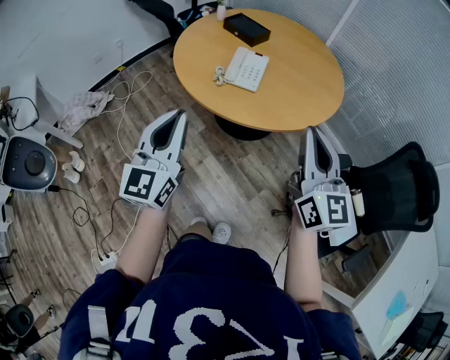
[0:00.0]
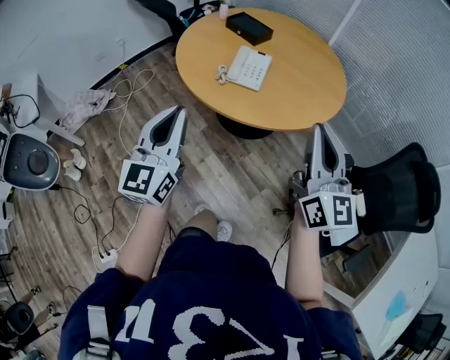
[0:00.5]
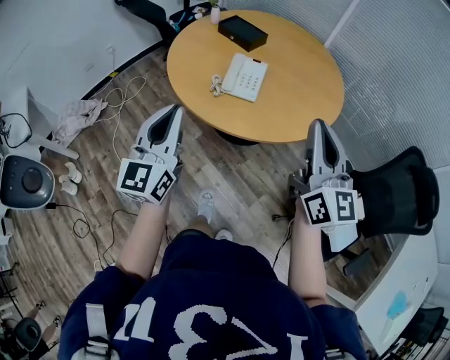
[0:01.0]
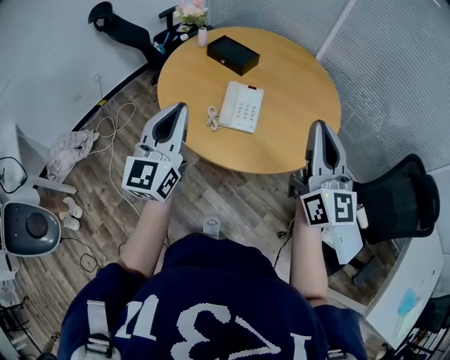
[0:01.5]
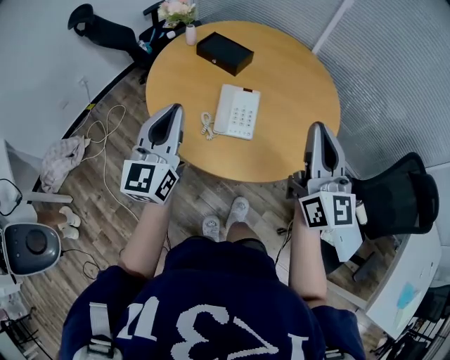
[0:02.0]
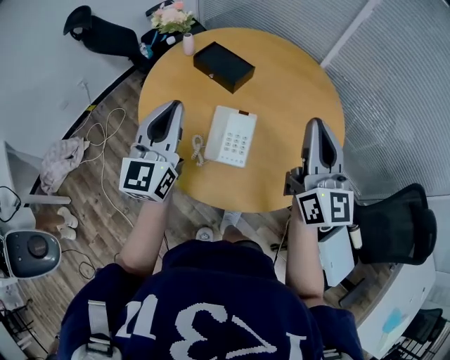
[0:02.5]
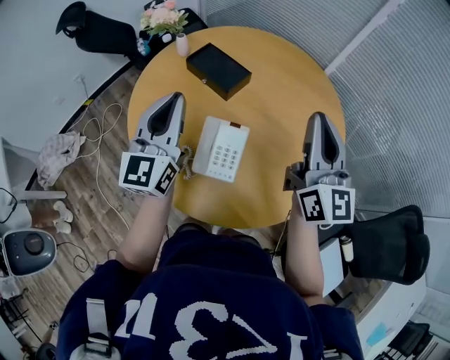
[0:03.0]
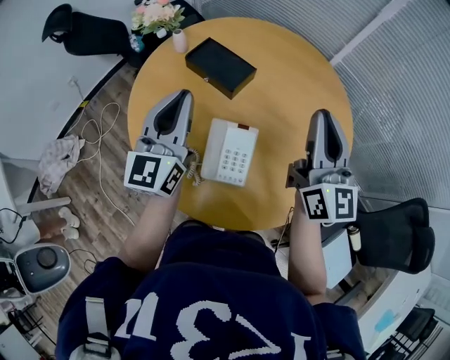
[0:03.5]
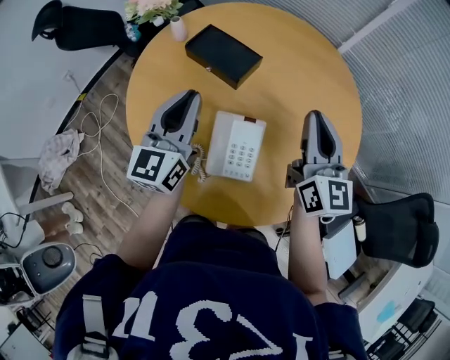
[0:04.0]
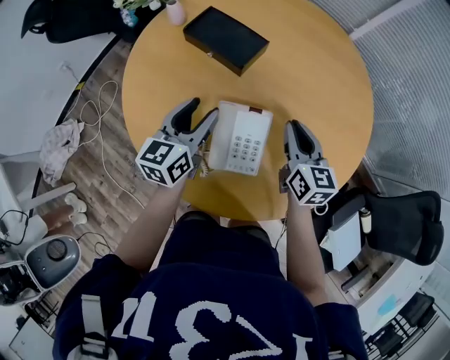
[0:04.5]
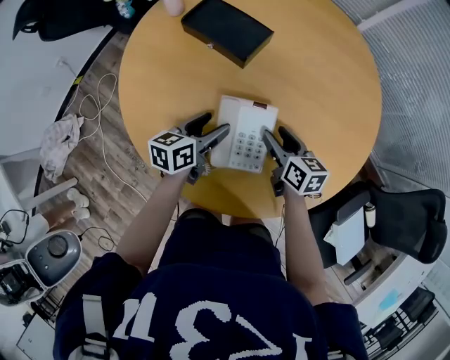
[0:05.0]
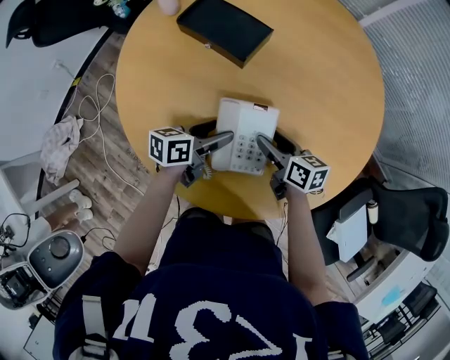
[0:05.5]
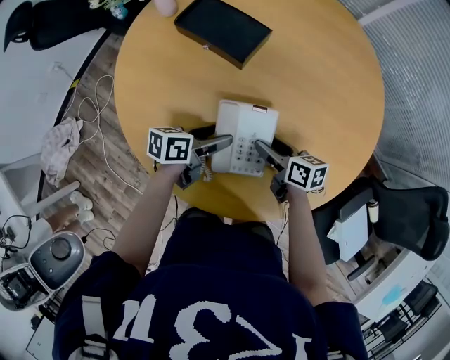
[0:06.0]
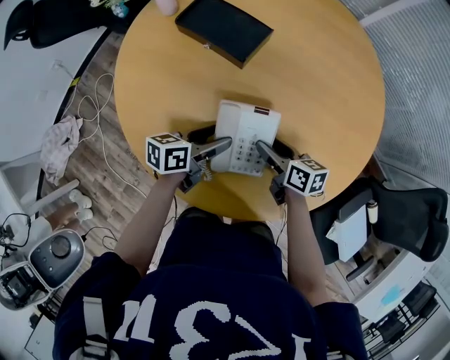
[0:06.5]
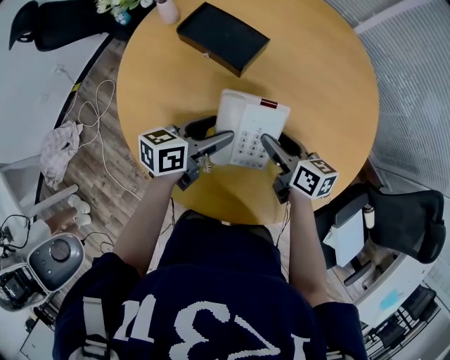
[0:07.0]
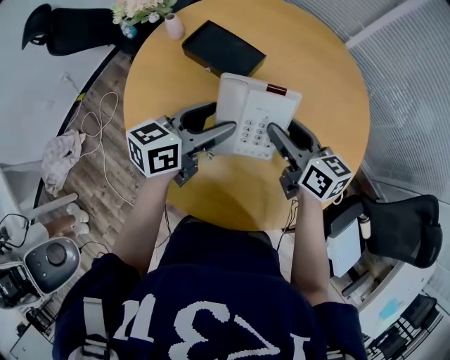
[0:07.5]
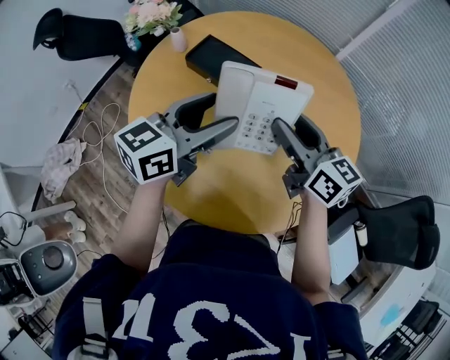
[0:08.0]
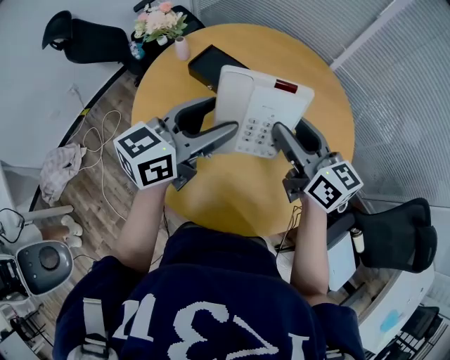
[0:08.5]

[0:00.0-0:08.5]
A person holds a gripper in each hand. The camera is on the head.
0:00.0 to 0:02.0: Both grippers travel together forward, roughly 25 cm.
0:02.0 to 0:04.0: Both grippers travel together forward, roughly 25 cm.
0:04.0 to 0:06.5: Both grippers move downward, some 25 cm. The right gripper tilts its fingers roughly 30 degrees downward, and opens. Meanwhile the left gripper swivels roughly 60 degrees, and opens.
0:06.5 to 0:08.5: The grippers both shift upward by approximately 30 cm. The left gripper turns by about 40 degrees; the right gripper swivels approximately 40 degrees.

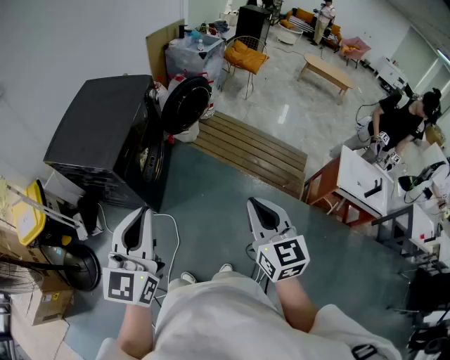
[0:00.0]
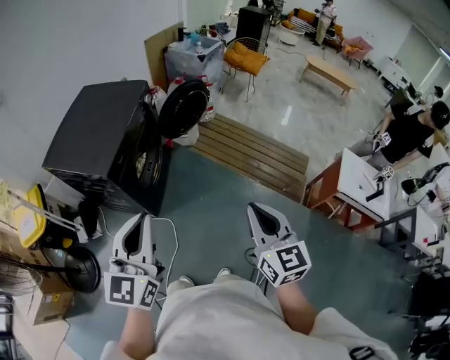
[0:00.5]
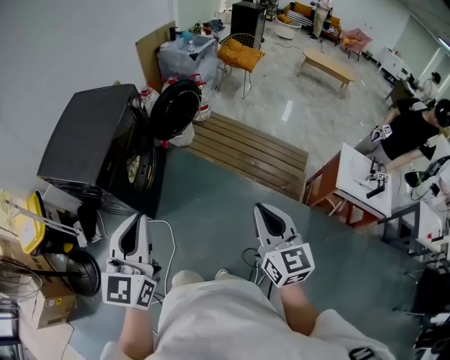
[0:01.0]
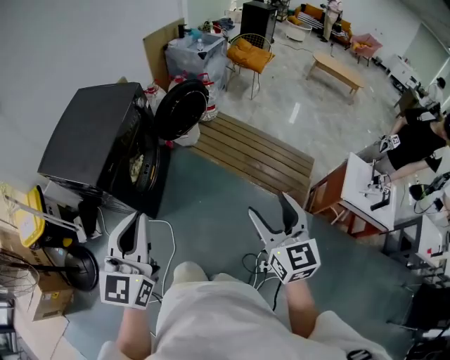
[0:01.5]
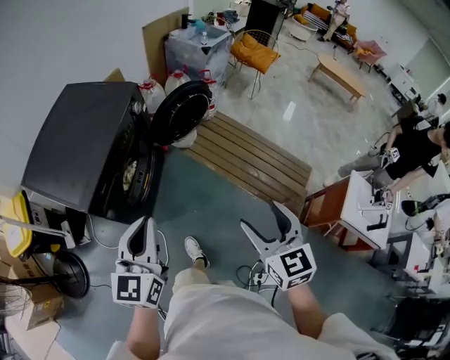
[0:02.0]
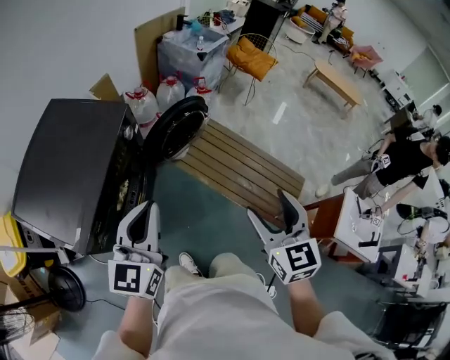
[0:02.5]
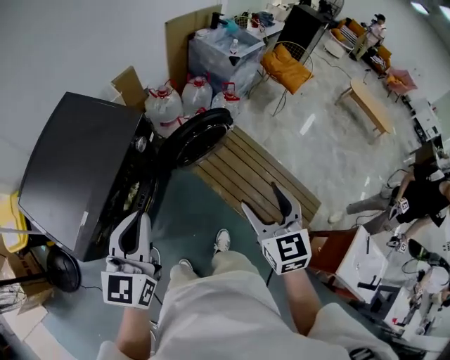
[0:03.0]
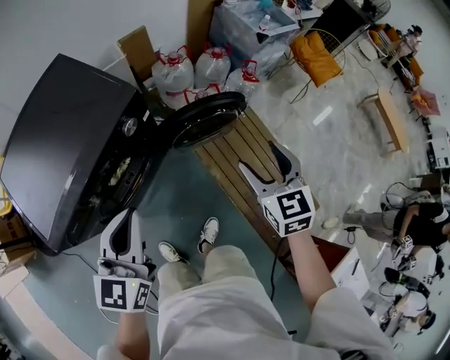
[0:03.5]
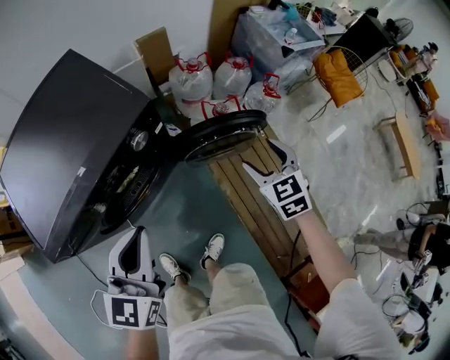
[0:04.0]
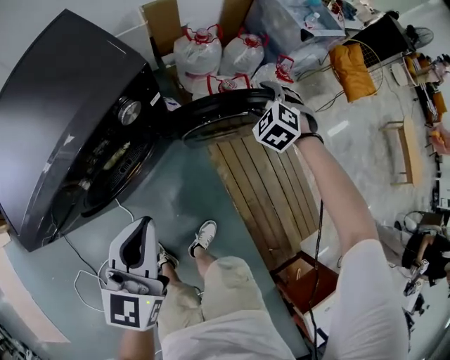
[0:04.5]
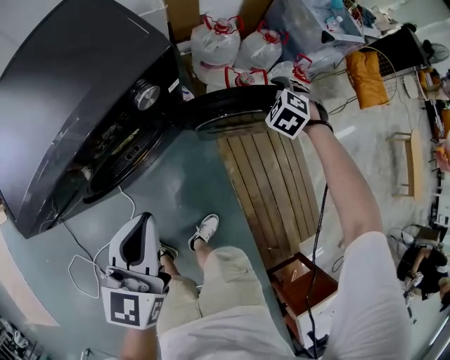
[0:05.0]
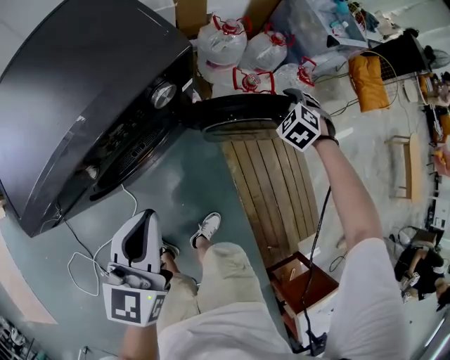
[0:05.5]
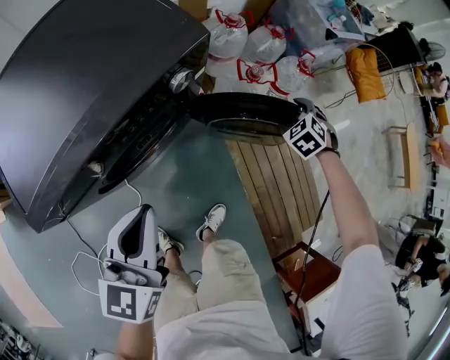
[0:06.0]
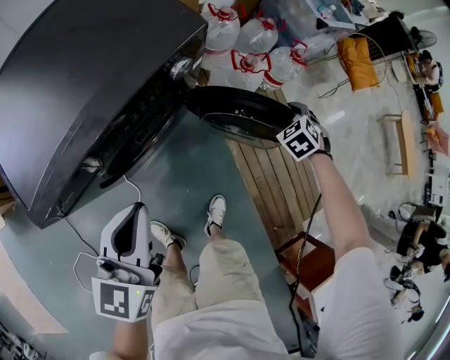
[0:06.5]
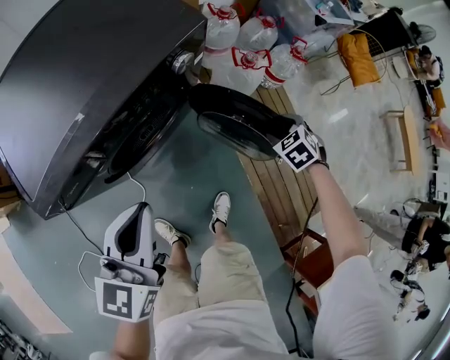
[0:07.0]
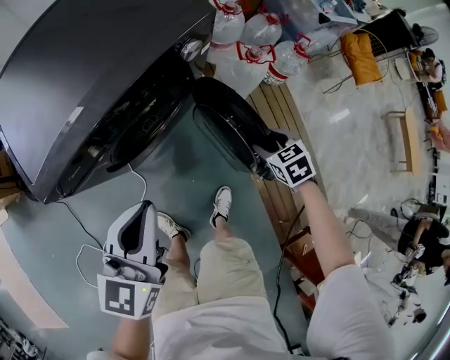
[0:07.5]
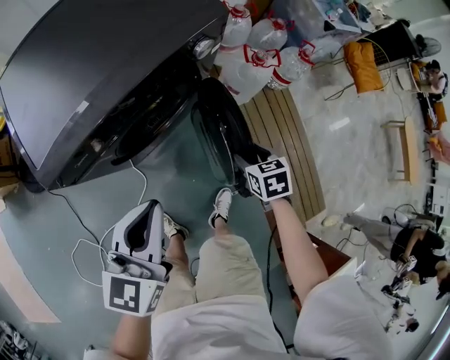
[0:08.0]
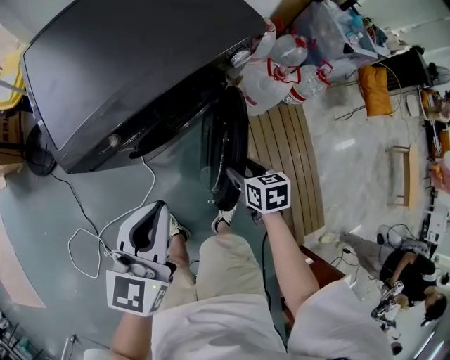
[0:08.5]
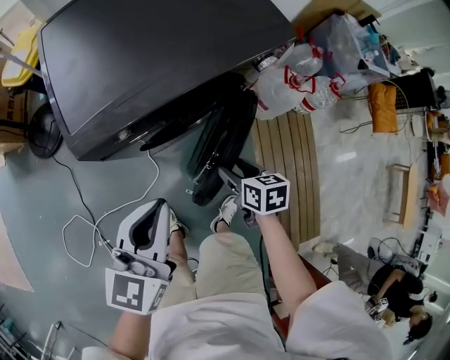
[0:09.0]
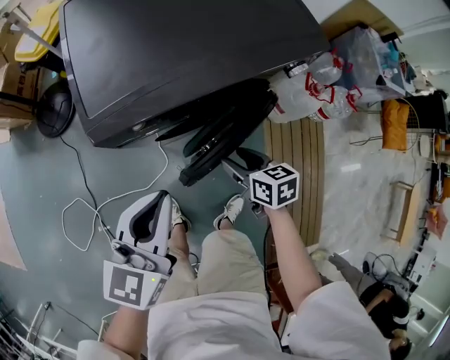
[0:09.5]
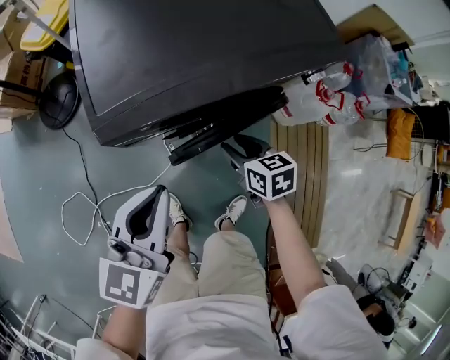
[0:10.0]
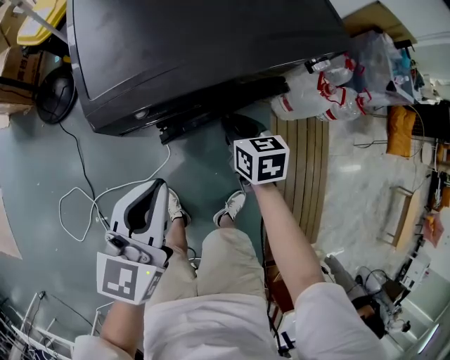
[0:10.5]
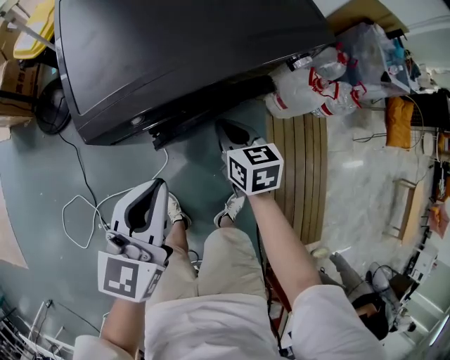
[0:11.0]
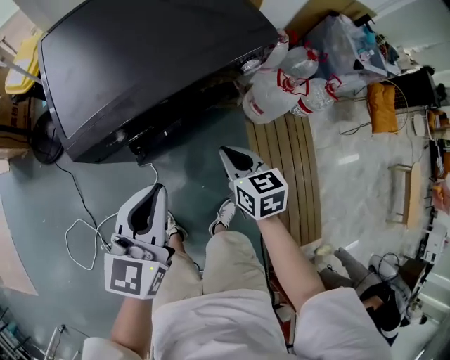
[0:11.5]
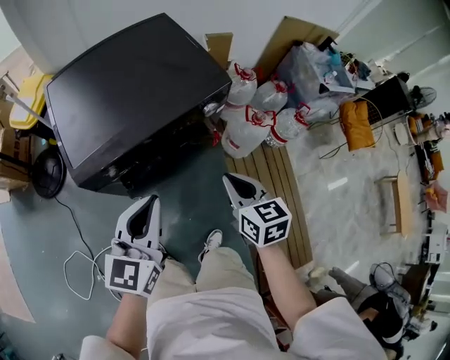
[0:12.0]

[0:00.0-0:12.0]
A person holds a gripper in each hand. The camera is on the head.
0:00.0 to 0:02.0: The right gripper travels forward by some 20 cm, and opens; the left gripper moves forward and downward, approximately 25 cm.
0:02.0 to 0:04.0: The left gripper shifts by roughly 35 cm, and rotates some 30 degrees; the right gripper shifts by approximately 60 cm, and turns by some 40 degrees.
0:04.0 to 0:06.0: The right gripper heads downward, covering about 15 cm, and rotates roughly 40 degrees. The left gripper travels downward and to the left by approximately 10 cm.
0:06.0 to 0:08.0: The right gripper is displaced backward and to the left by approximately 30 cm, and rolls clockwise, seen from behind, by about 40 degrees. The left gripper heads backward, covering some 10 cm.
0:08.0 to 0:10.0: The left gripper ends up approximately 15 cm from where it was; the right gripper changes place by approximately 25 cm, and swivels some 30 degrees.
0:10.0 to 0:12.0: The right gripper moves upward and to the right, about 30 cm, turns by about 20 degrees, and closes its fingers; the left gripper shifts approximately 20 cm to the right and upward.

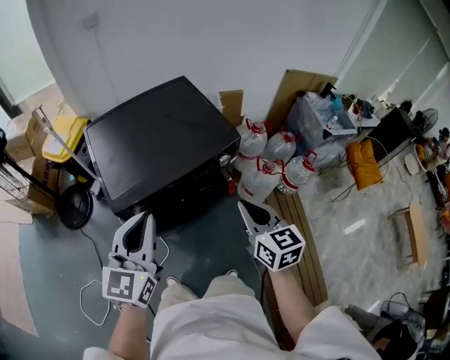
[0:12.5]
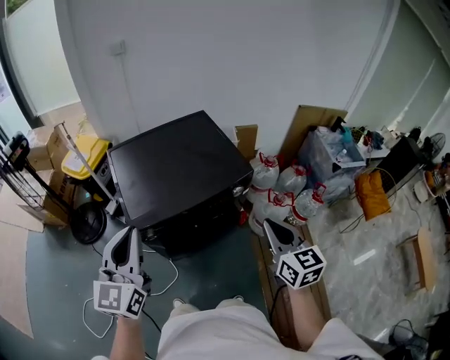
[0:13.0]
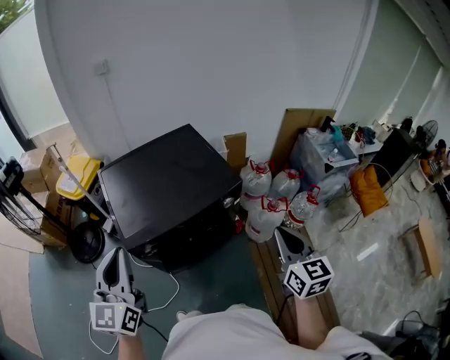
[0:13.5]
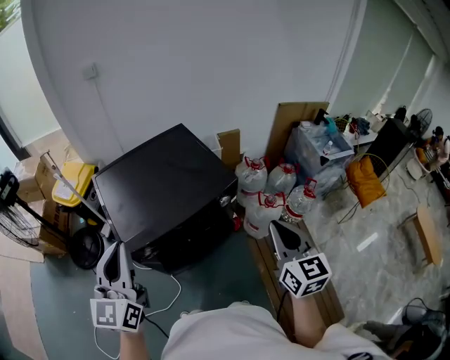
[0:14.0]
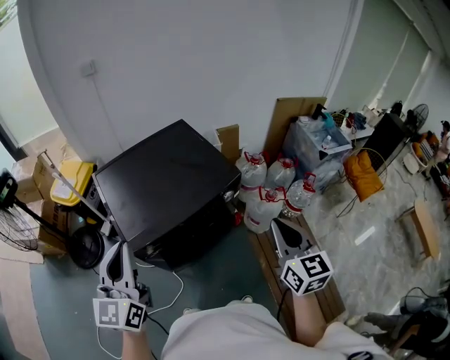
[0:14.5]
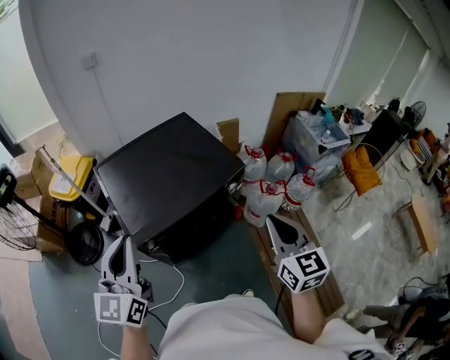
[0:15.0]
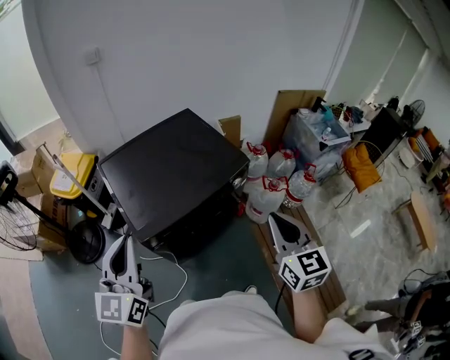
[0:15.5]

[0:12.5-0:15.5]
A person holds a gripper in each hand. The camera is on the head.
0:12.5 to 0:14.0: The left gripper travels upward and to the left by some 10 cm. Meanwhile the right gripper is displaced upward and to the right by about 10 cm.
0:14.0 to 0:15.5: Both grippers travel together to the left, roughly 10 cm.

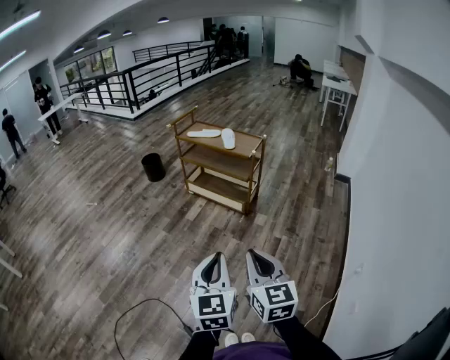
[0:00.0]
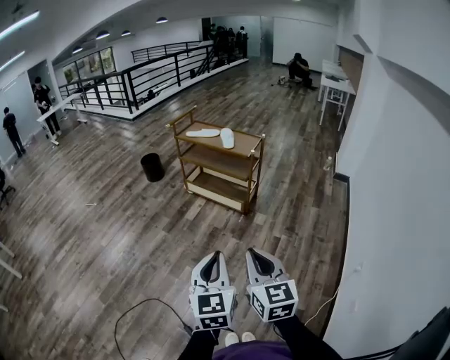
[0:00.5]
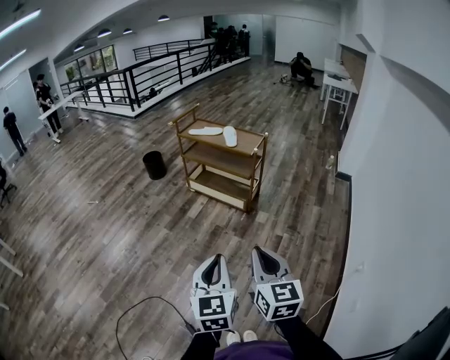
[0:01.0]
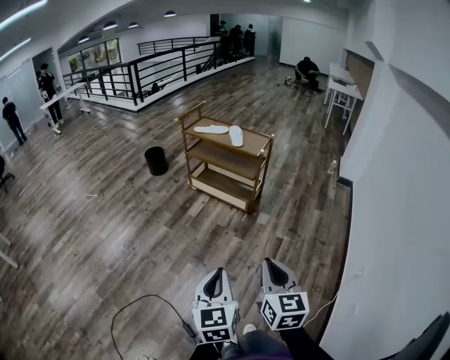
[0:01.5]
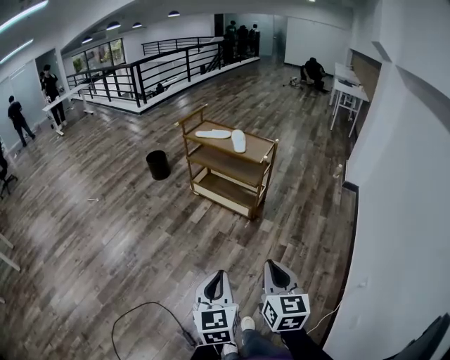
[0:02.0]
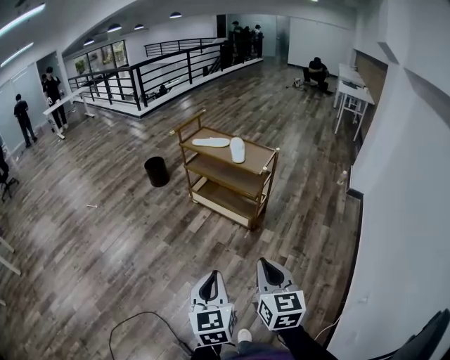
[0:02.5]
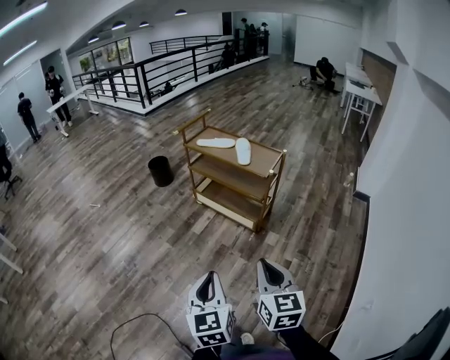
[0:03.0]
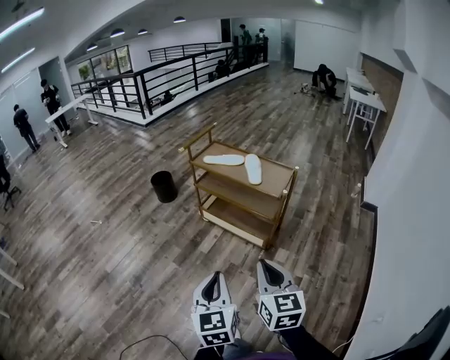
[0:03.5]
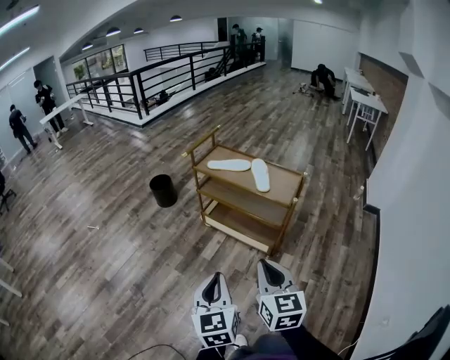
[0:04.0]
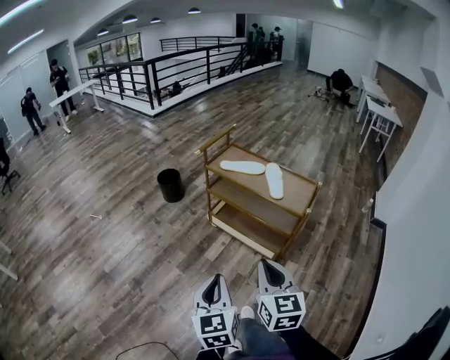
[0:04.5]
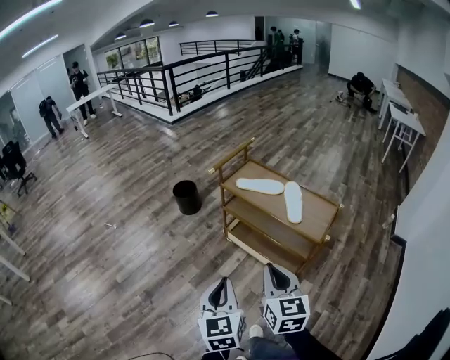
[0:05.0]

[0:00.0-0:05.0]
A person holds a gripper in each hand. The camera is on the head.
0:00.0 to 0:02.5: Both grippers move forward, about 15 cm.
0:02.5 to 0:05.0: Both grippers are carried forward, approximately 40 cm.
